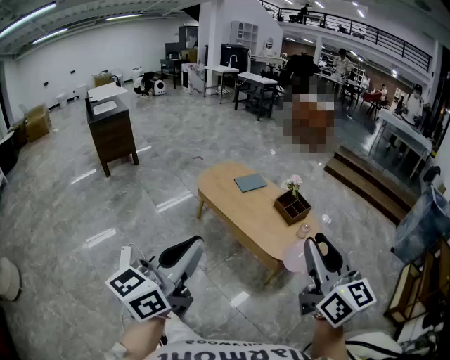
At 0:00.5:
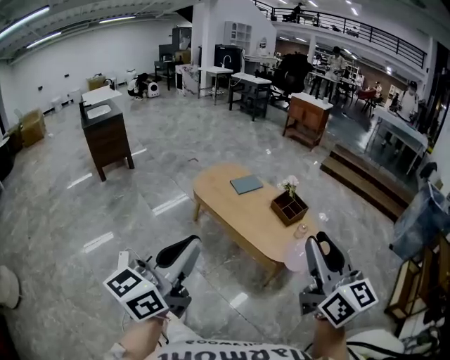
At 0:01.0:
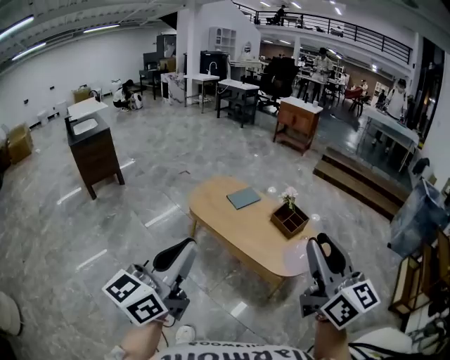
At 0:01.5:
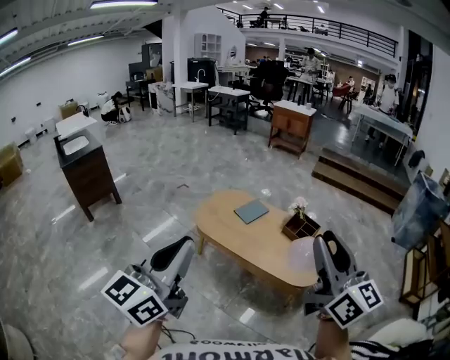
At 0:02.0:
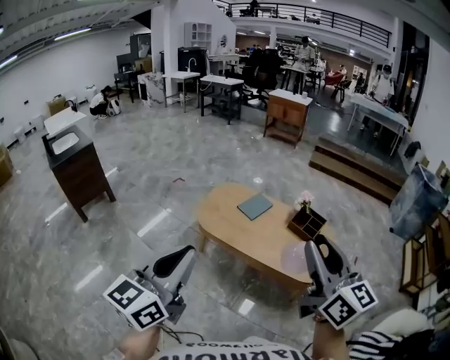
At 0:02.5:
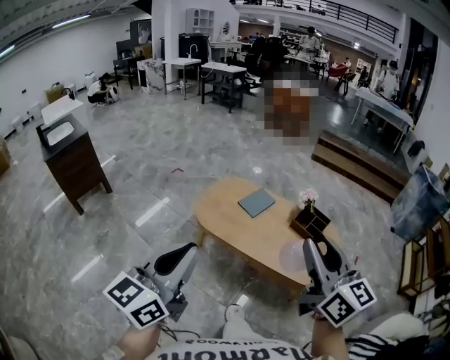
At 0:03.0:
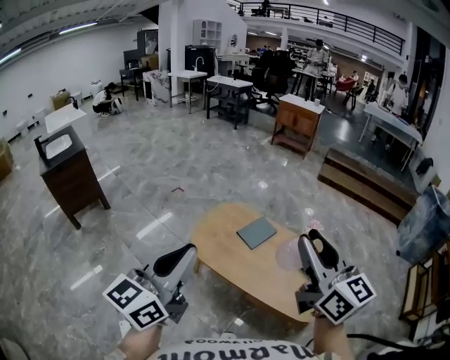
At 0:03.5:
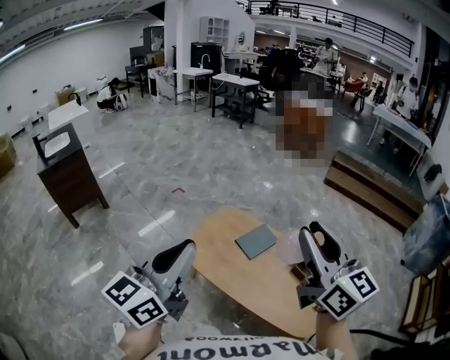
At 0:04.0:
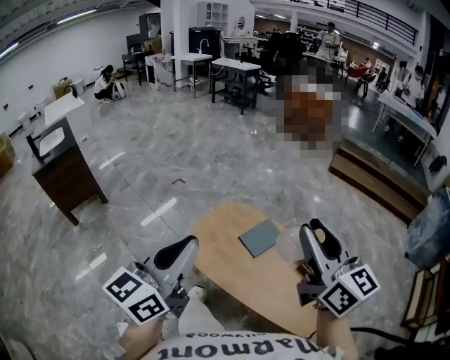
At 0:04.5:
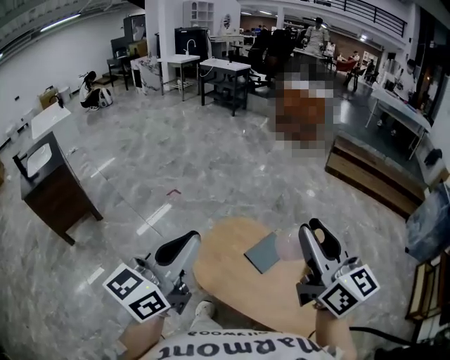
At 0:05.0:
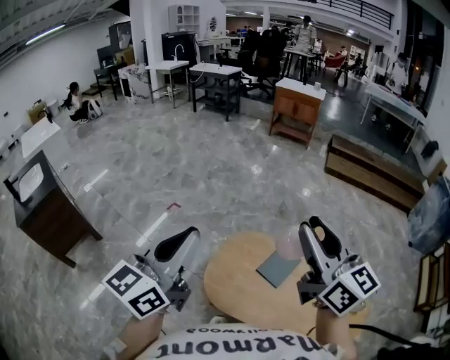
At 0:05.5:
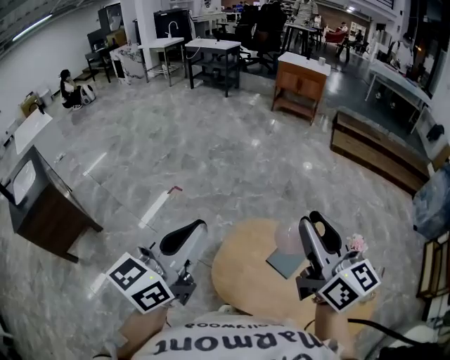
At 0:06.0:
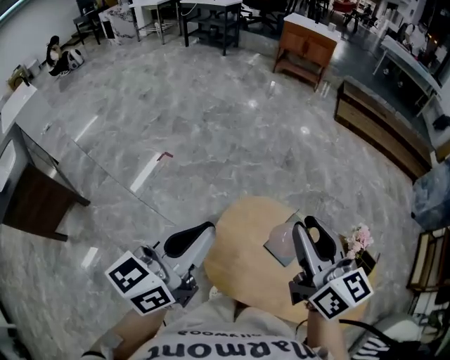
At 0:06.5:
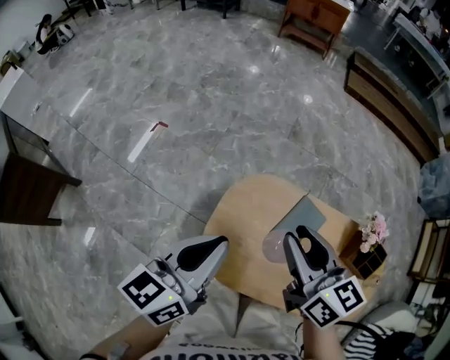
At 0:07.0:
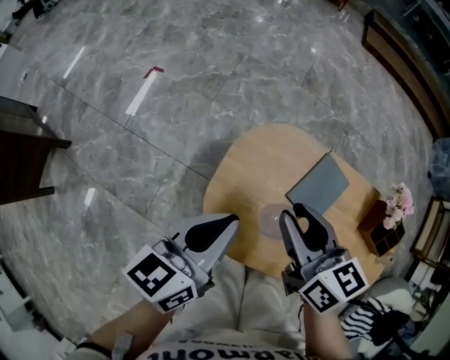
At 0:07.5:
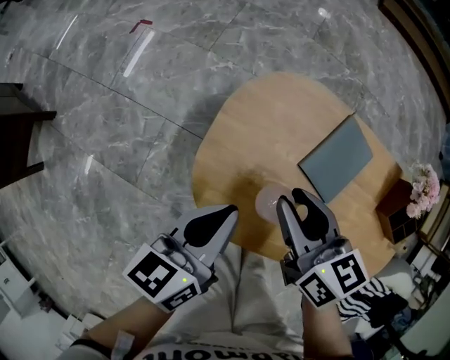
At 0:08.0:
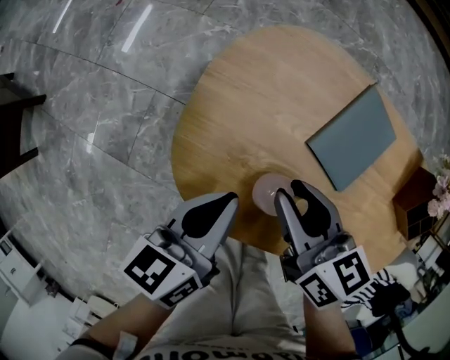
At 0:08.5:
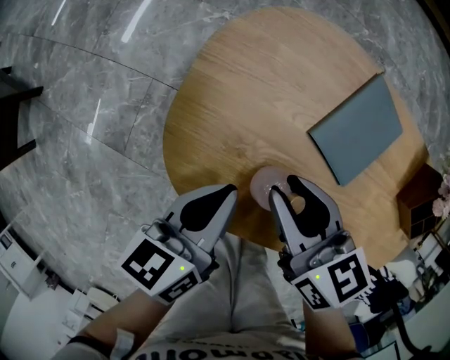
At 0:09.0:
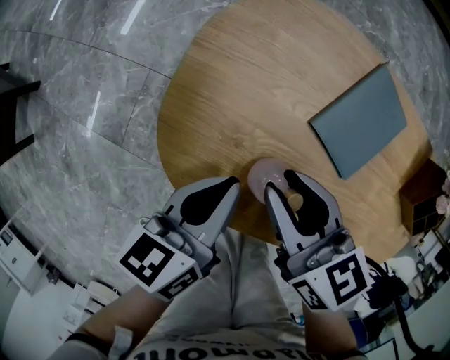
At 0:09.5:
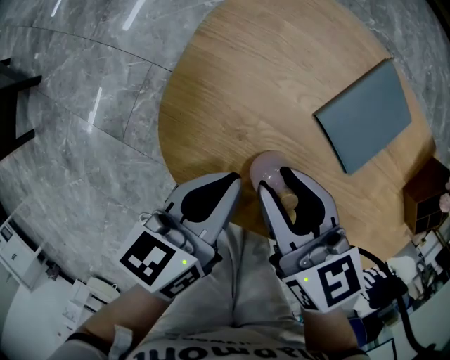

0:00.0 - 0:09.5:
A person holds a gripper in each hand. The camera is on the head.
0:00.0 - 0:02.0: Both grippers travel together to the left and forward, roughly 30 cm.
0:02.0 - 0:04.0: Both grippers move forward, some 40 cm.
0:04.0 - 0:05.5: Both grippers travel together forward and to the left, about 30 cm.
0:05.5 - 0:07.5: The grippers both shift downward by about 50 cm. The right gripper tips its fingers downward by some 40 degrees; the left gripper rotates approximately 40 degrees.
0:07.5 - 0:09.5: The right gripper is displaced downward and backward by approximately 10 cm. Meanwhile the left gripper goes roughly 10 cm downward.

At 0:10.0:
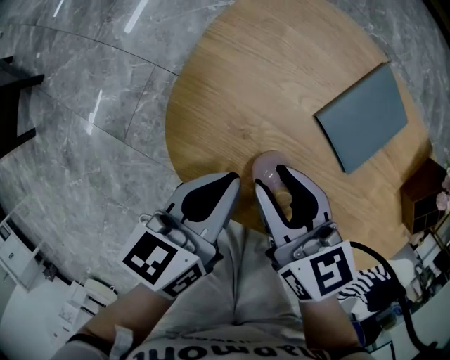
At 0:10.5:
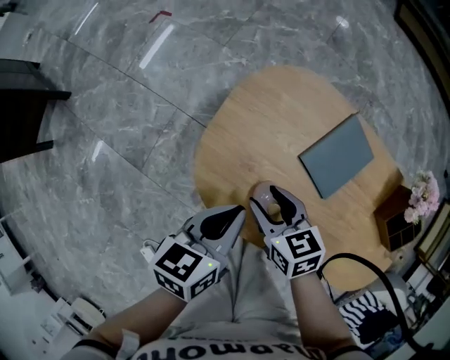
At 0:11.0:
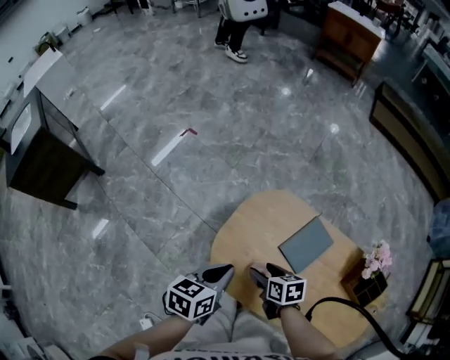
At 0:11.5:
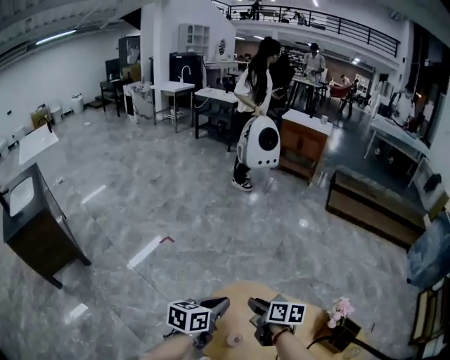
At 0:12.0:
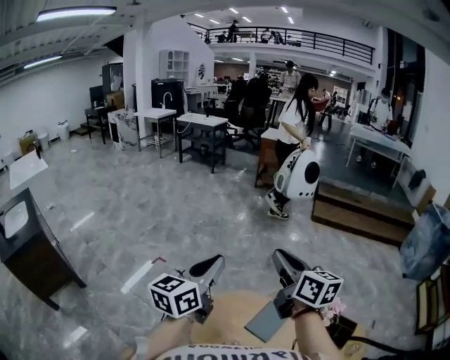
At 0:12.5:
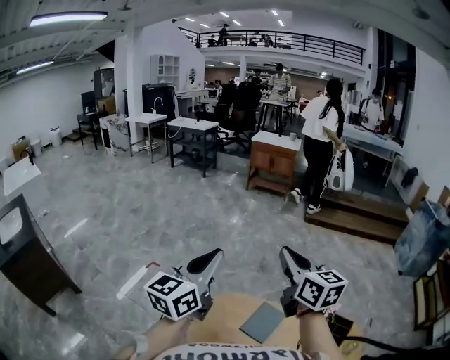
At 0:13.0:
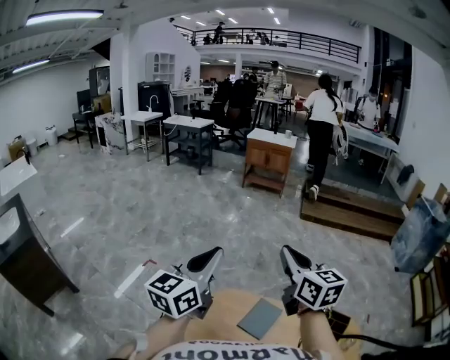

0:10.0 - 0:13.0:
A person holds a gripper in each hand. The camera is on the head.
0:10.0 - 0:11.5: The left gripper travels upward by about 30 cm; the right gripper is displaced upward and forward by approximately 25 cm, and opens, then closes again.
0:11.5 - 0:13.0: Both grippers travel together upward, about 30 cm. The left gripper changes its angle by approximately 40 degrees; the right gripper angles its fingers upward, by about 30 degrees, and closes up.

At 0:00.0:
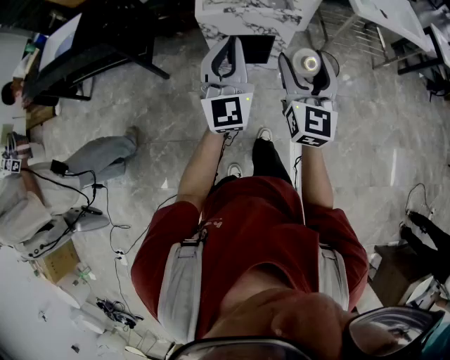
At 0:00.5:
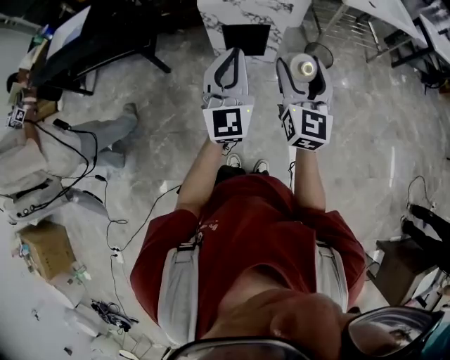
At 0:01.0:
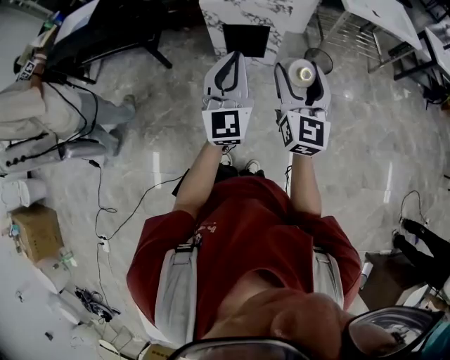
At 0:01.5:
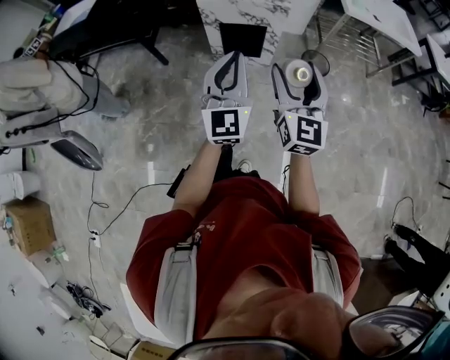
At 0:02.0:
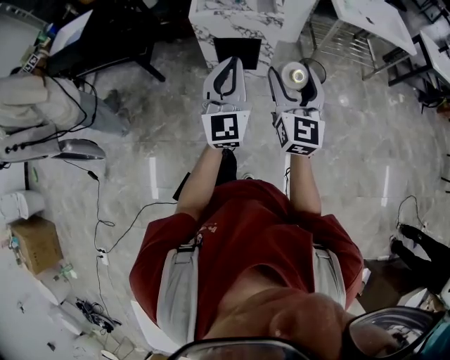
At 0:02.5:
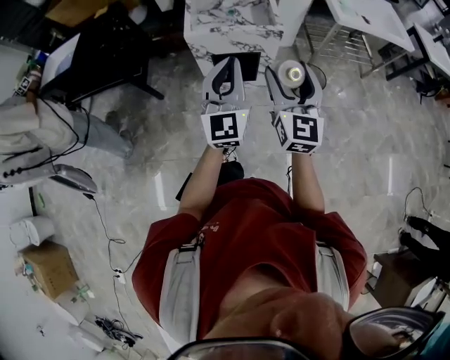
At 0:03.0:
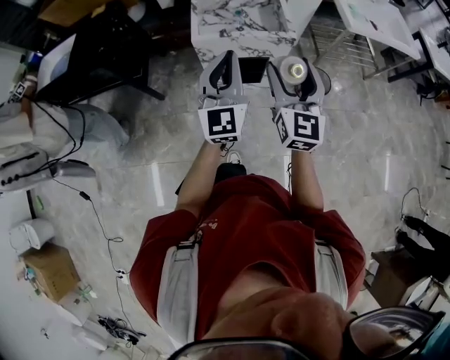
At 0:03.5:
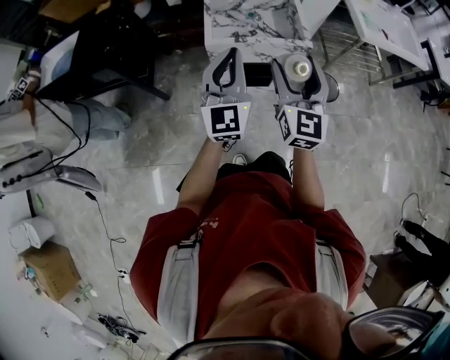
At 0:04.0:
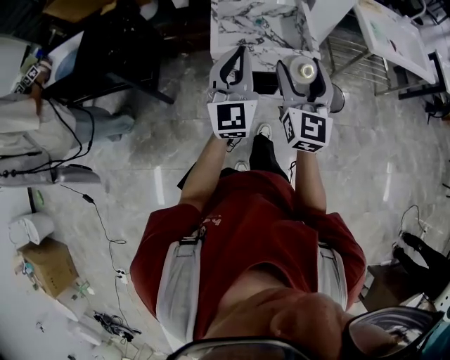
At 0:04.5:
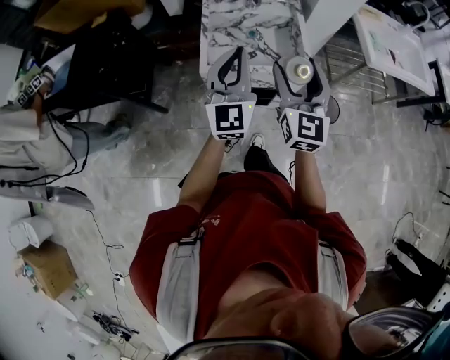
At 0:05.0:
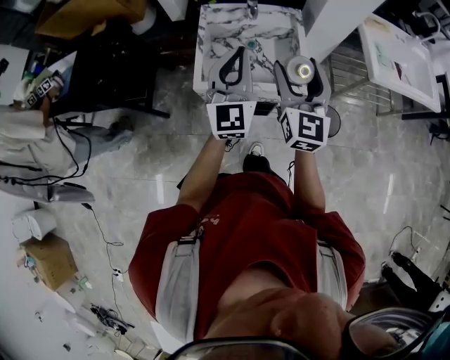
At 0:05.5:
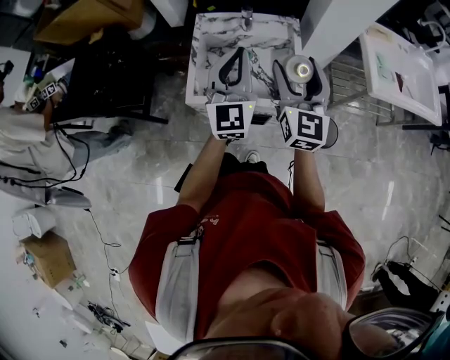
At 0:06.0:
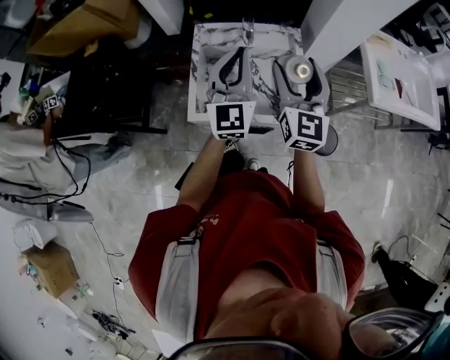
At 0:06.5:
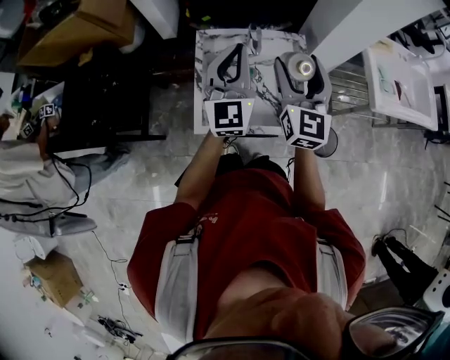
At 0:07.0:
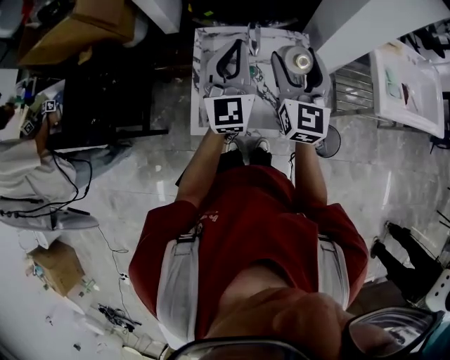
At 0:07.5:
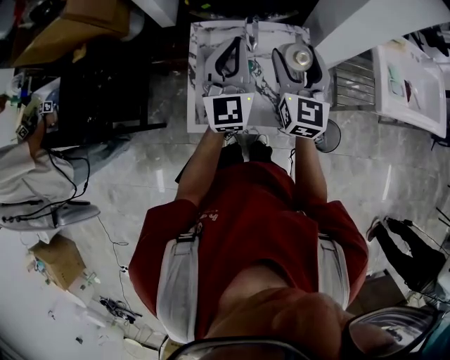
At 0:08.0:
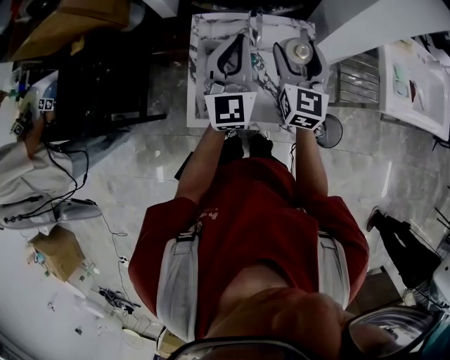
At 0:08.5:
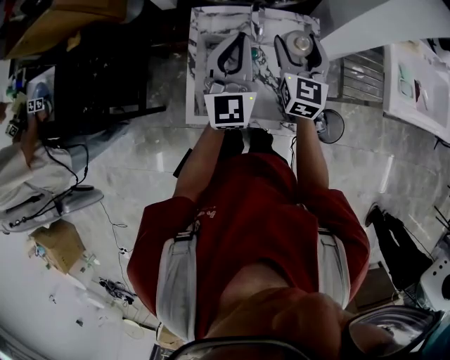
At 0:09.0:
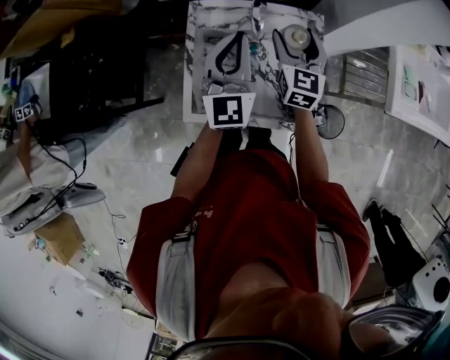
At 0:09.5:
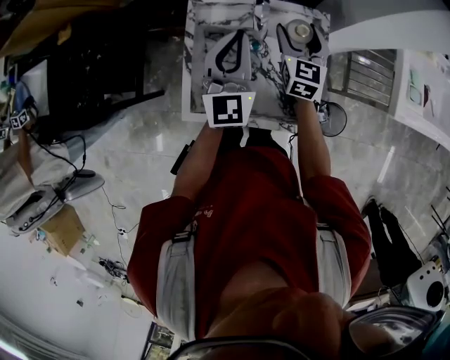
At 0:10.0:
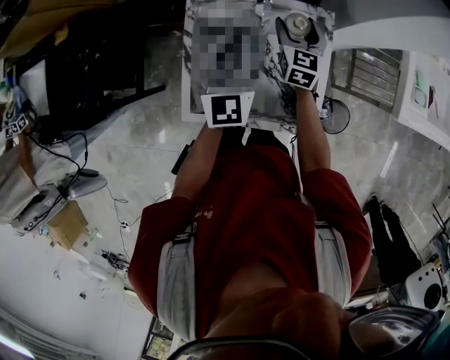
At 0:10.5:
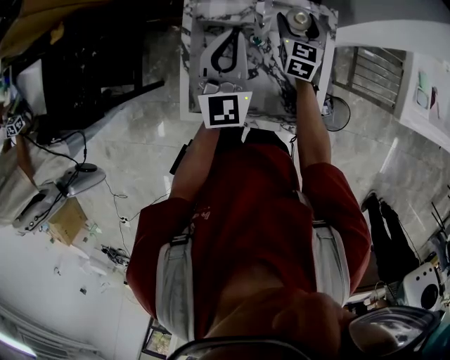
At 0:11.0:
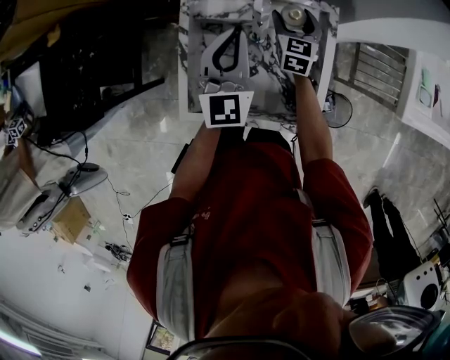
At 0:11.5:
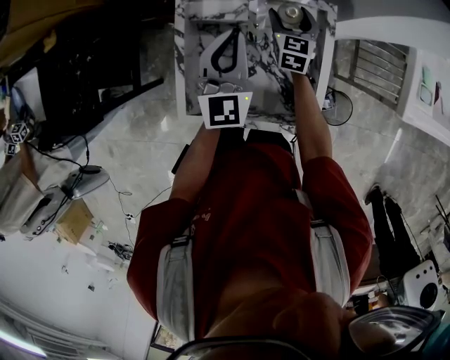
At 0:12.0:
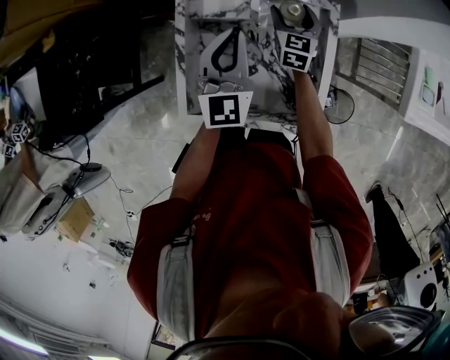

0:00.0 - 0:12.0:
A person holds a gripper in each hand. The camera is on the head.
0:00.0 - 0:02.0: The grippers both shift backward and to the right by roughly 15 cm.
0:02.0 - 0:04.0: Both grippers travel together forward and to the left, approximately 35 cm.
0:04.0 - 0:06.0: The two grippers go some 30 cm forward.
0:06.0 - 0:08.0: The right gripper heads forward and downward, covering roughly 15 cm. The left gripper heads forward, covering roughly 10 cm.
0:08.0 - 0:10.0: The left gripper moves downward and forward, some 10 cm. Meanwhile the right gripper shifts some 20 cm downward and forward.
0:10.0 - 0:12.0: The right gripper shifts some 5 cm downward.

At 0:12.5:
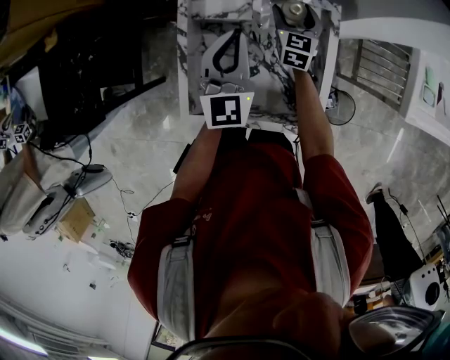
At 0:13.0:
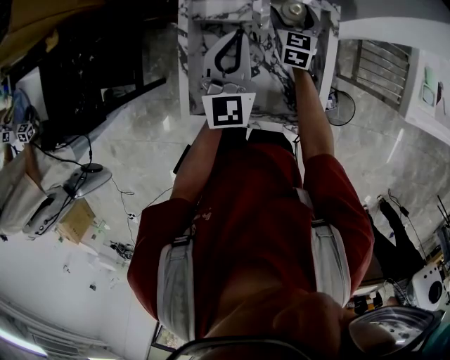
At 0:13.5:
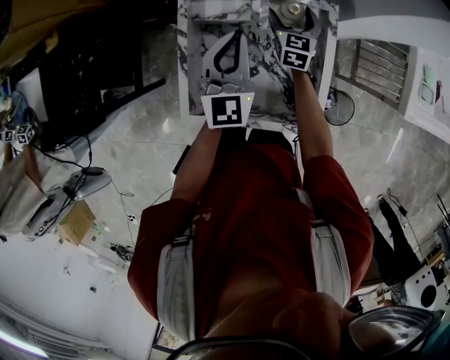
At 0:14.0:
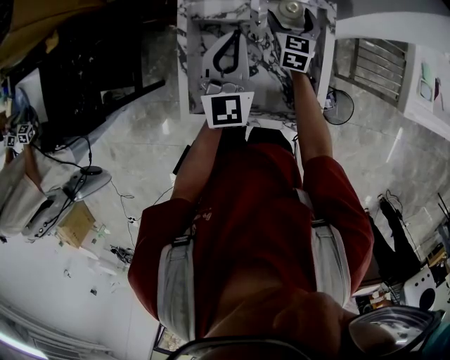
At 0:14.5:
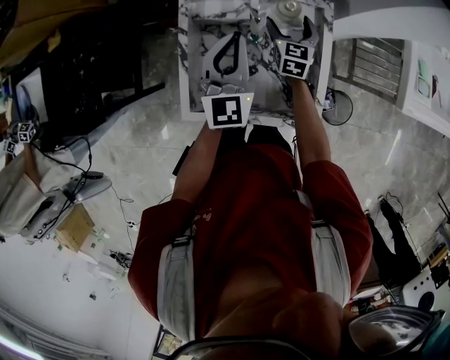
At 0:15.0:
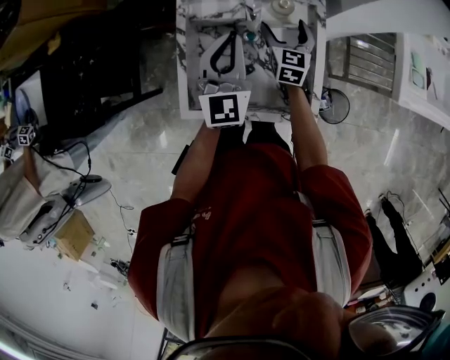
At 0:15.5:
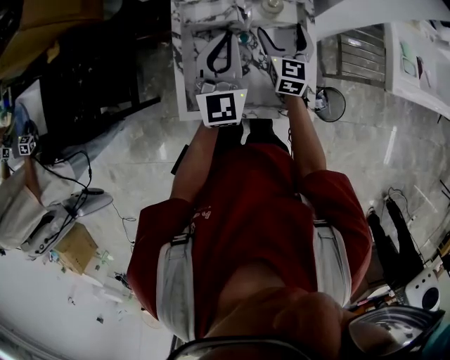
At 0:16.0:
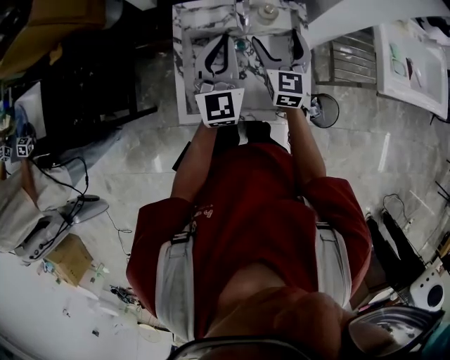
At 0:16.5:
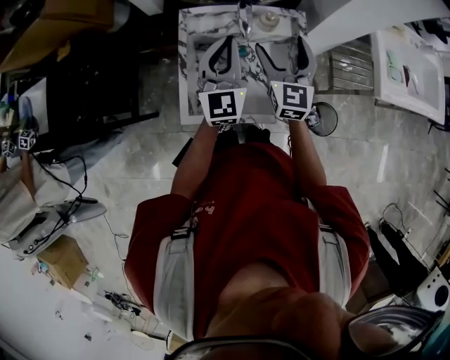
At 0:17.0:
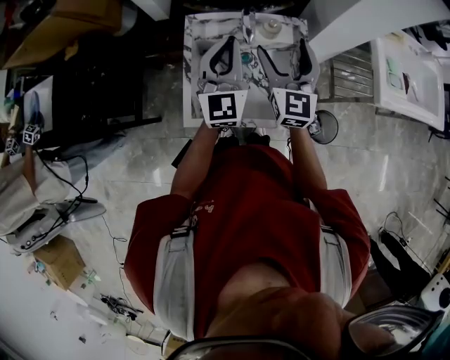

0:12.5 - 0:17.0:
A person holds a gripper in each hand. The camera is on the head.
0:12.5 - 0:14.5: There are only small adjustments of the grippers.
0:14.5 - 0:17.0: The left gripper travels upward by some 10 cm; the right gripper heads upward and backward, covering some 30 cm, and swivels about 30 degrees.
